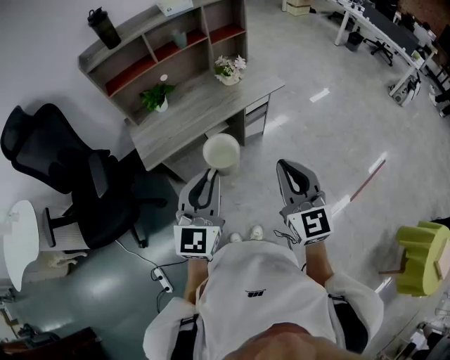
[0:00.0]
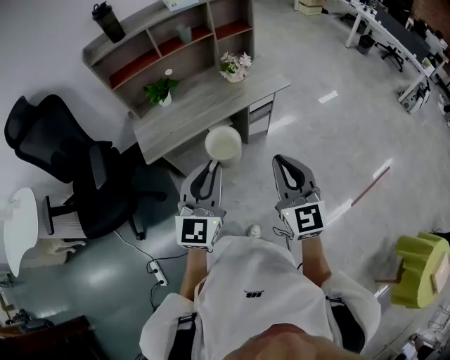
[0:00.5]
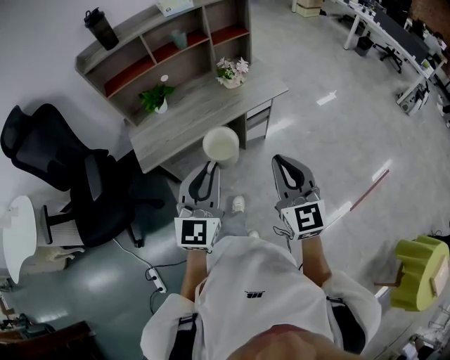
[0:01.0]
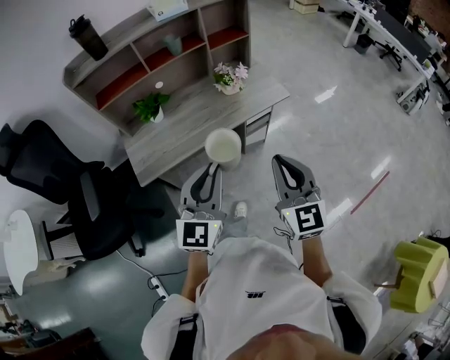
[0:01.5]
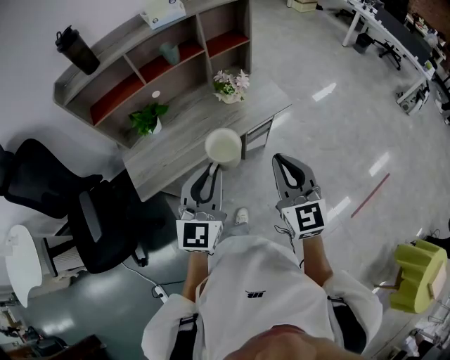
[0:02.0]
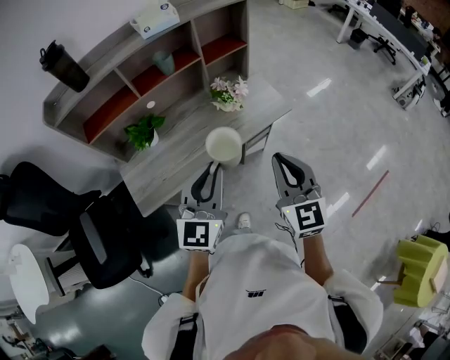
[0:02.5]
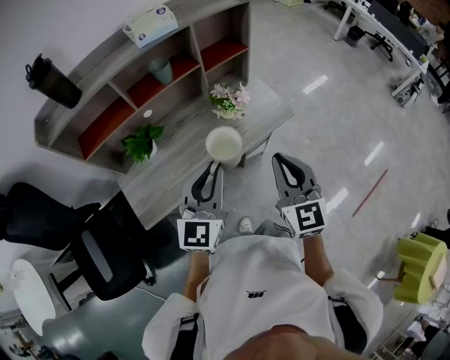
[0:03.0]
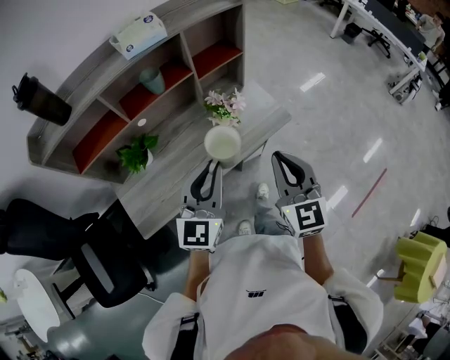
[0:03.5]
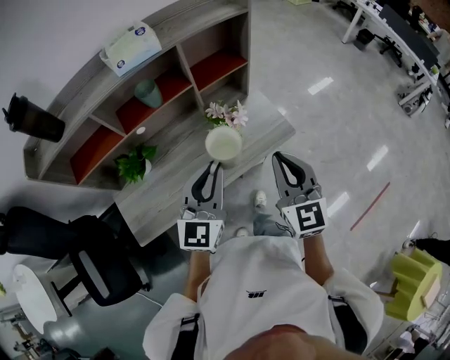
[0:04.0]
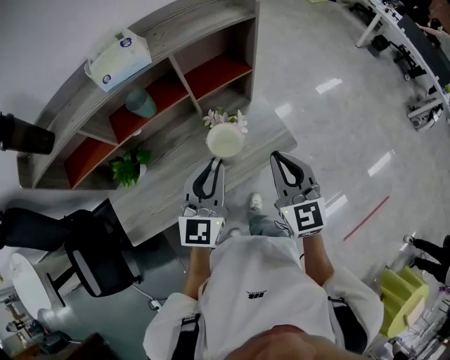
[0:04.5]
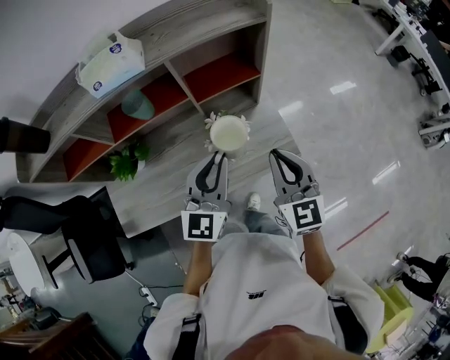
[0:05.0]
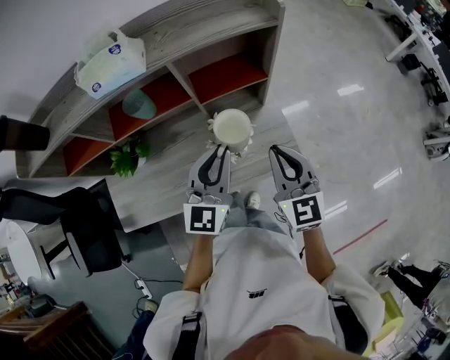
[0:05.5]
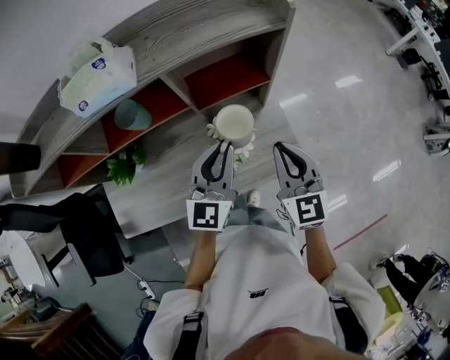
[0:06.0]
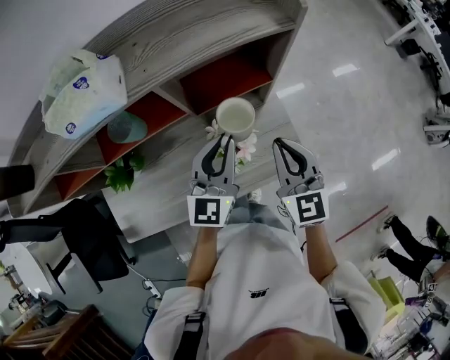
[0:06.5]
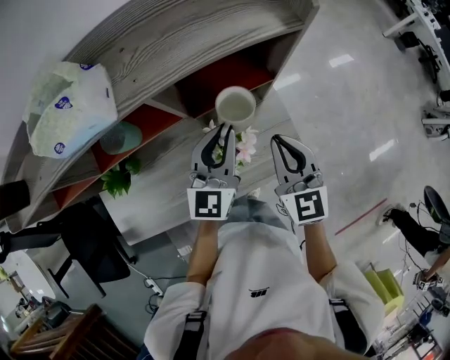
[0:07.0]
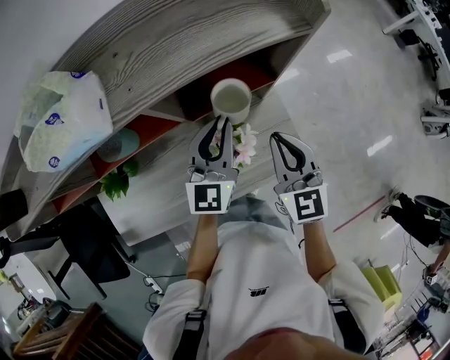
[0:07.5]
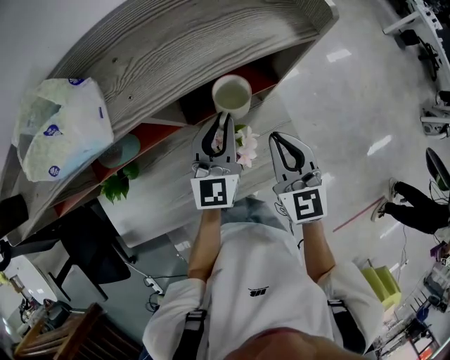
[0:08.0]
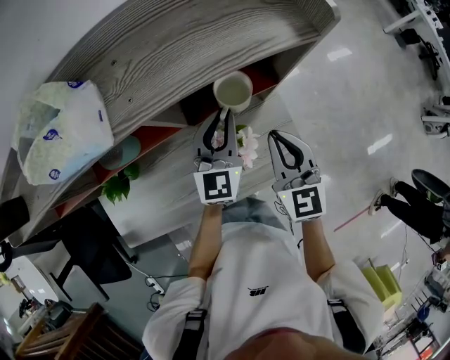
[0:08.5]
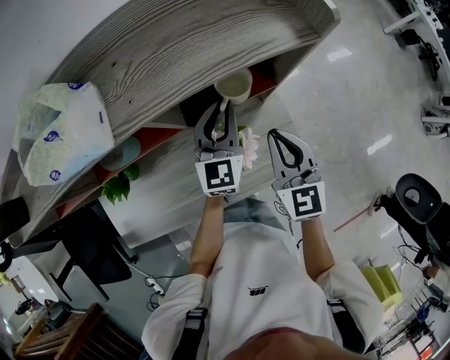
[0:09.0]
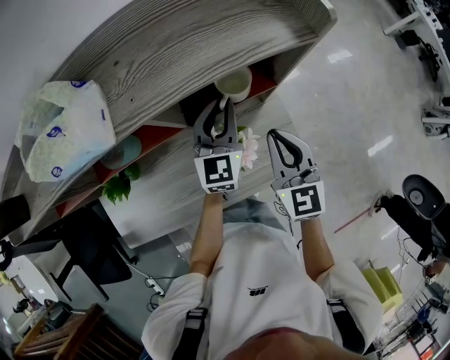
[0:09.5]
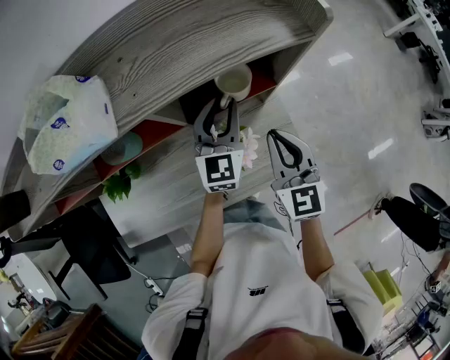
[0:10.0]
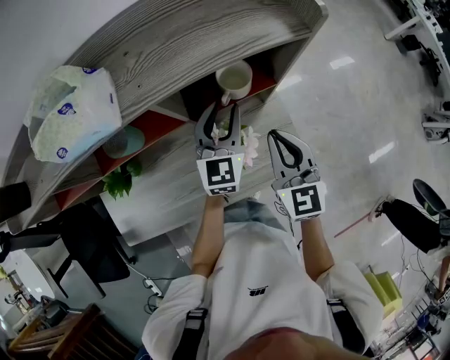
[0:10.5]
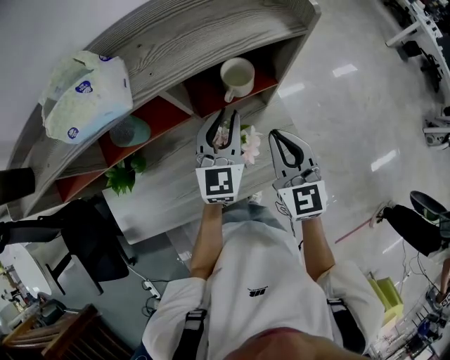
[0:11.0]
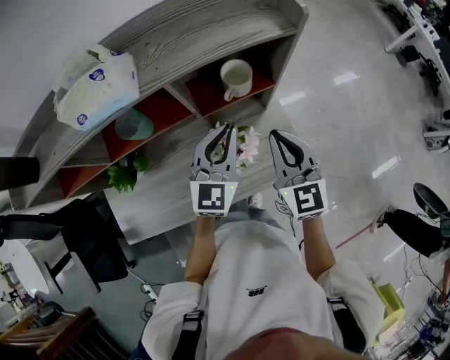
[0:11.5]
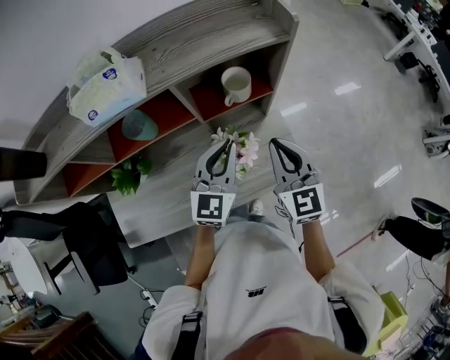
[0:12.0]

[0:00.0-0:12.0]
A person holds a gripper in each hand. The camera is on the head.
0:00.0 to 0:02.0: Both grippers travel together forward, roughly 20 cm.
0:02.0 to 0:04.0: The two grippers go some 25 cm forward.
0:04.0 to 0:06.0: Both grippers move forward, approximately 20 cm.
0:06.0 to 0:08.0: The right gripper is displaced forward by about 10 cm. Meanwhile the left gripper shifts roughly 10 cm forward.
0:08.0 to 0:10.0: The grippers stay close to where they were, moving slightly.
0:10.0 to 0:12.0: The right gripper goes about 5 cm backward. The left gripper shifts some 15 cm backward.

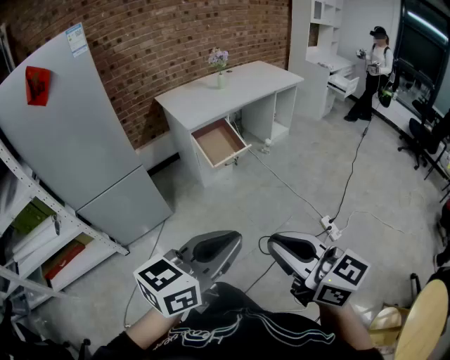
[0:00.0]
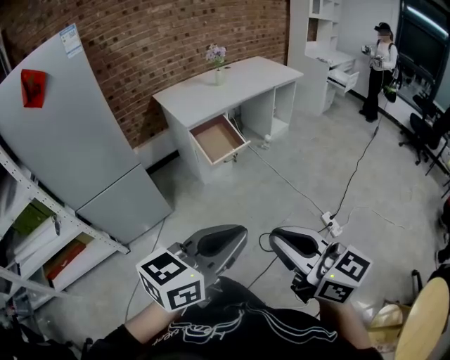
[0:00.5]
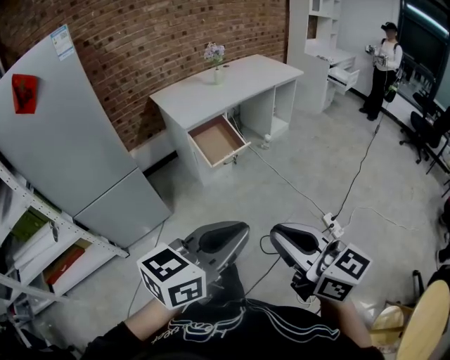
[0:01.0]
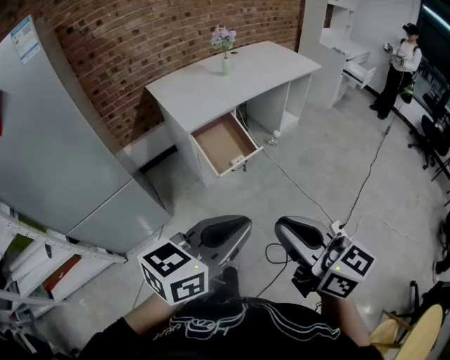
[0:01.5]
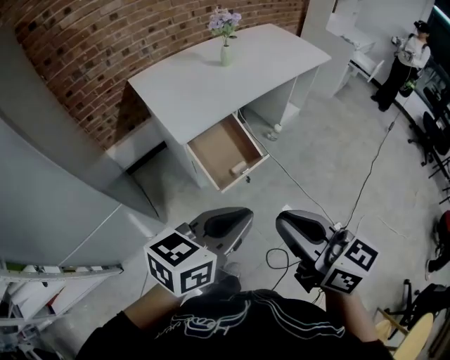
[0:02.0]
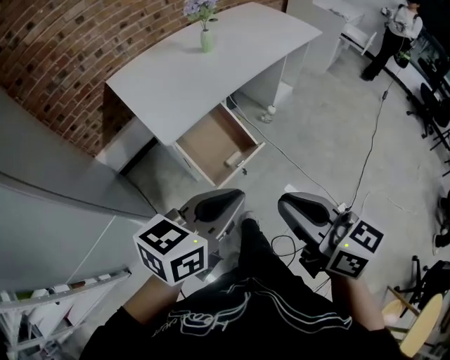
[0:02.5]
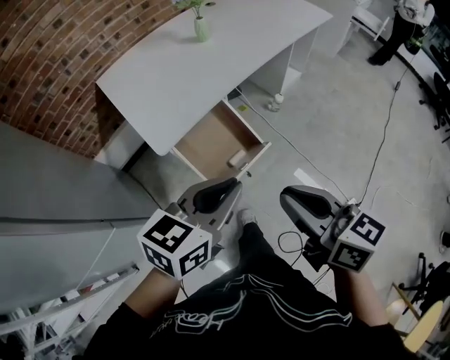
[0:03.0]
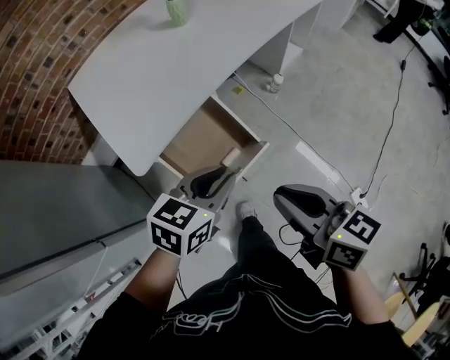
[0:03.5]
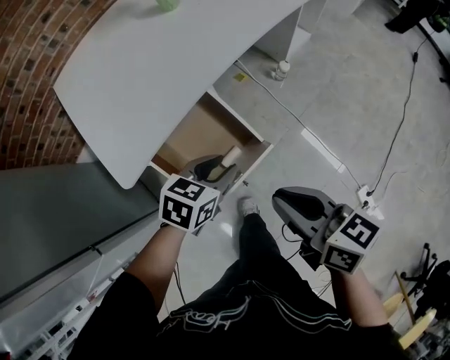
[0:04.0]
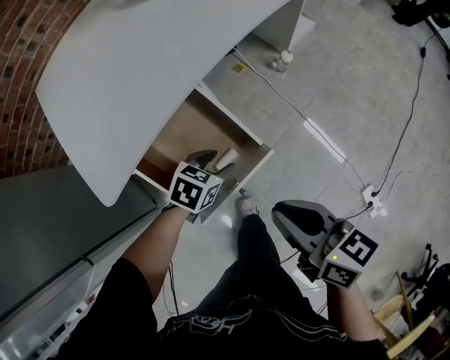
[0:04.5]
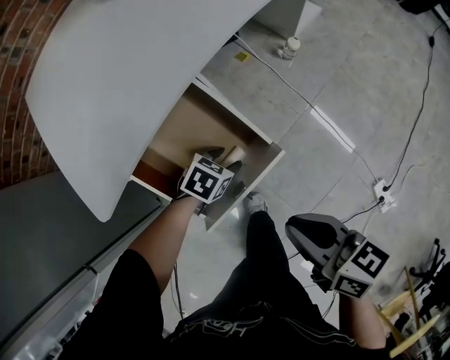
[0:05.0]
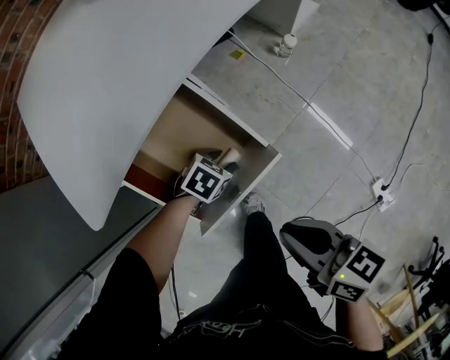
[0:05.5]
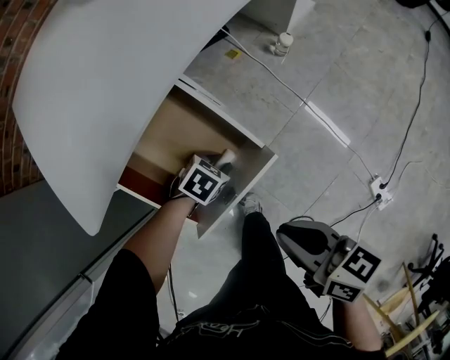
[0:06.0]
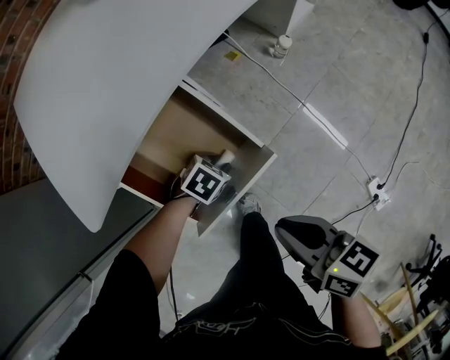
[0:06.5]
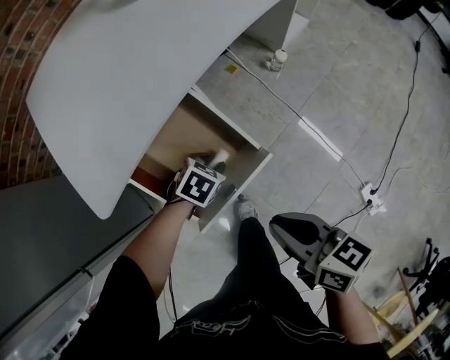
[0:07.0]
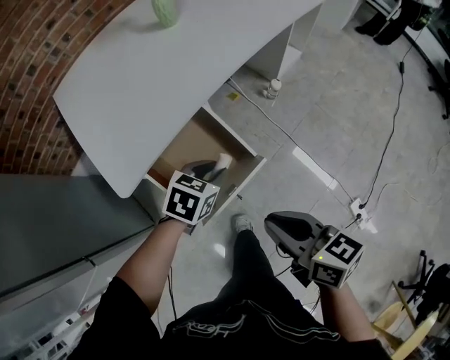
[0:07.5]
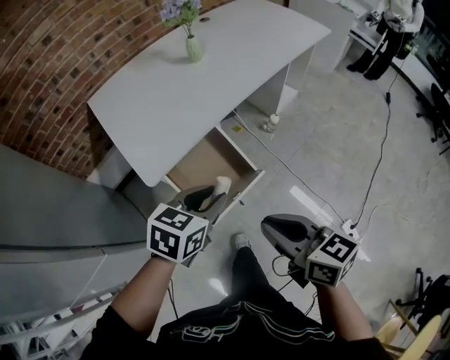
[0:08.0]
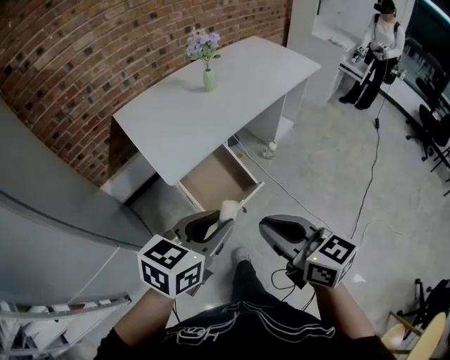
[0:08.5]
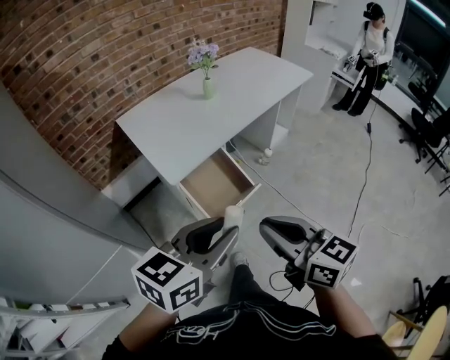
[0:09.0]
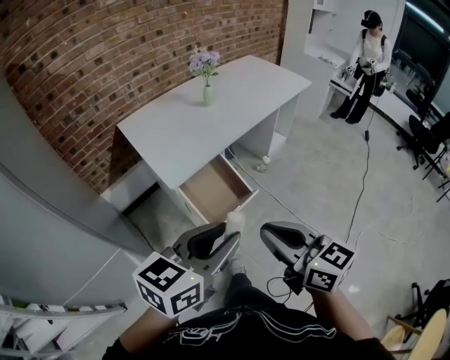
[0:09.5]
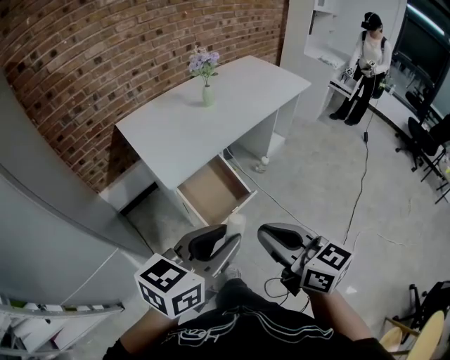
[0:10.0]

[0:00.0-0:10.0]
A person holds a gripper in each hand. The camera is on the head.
0:00.0 to 0:02.0: The pair of grippers is taken forward, roughly 50 cm.
0:02.0 to 0:04.0: The grippers both shift forward and downward by approximately 50 cm. The right gripper rotates approximately 20 degrees, while the left gripper tilts its fingers some 30 degrees downward, and opens its fingers.
0:04.0 to 0:06.0: The right gripper shifts about 15 cm downward; the left gripper travels downward by roughly 25 cm, changes its angle by some 30 degrees, and opens, then closes once more.
0:06.0 to 0:08.0: The left gripper moves upward, some 40 cm, and tips its fingers upward by approximately 30 degrees, while the right gripper heads upward, covering some 25 cm, and rotates some 20 degrees.
0:08.0 to 0:10.0: The two grippers go about 25 cm backward and upward. The left gripper swivels approximately 30 degrees.

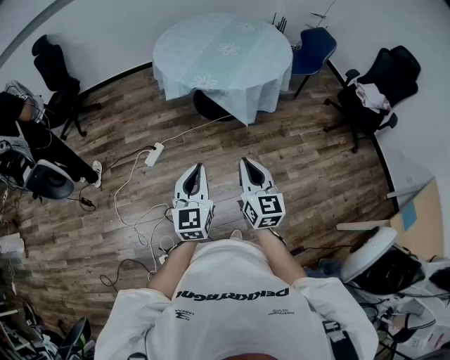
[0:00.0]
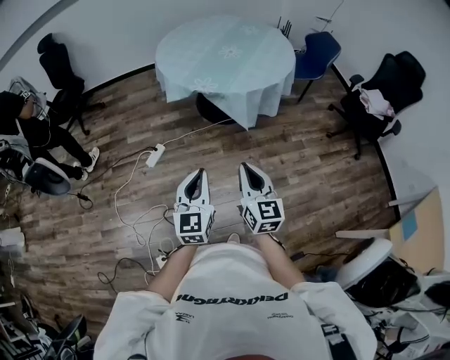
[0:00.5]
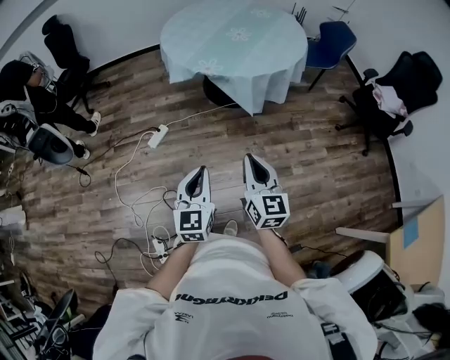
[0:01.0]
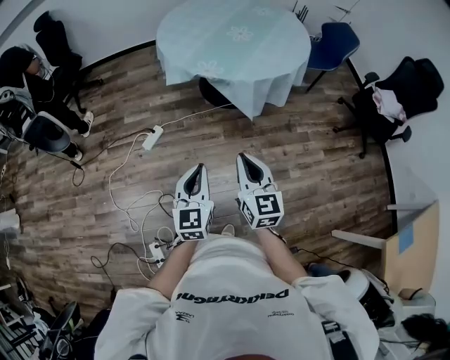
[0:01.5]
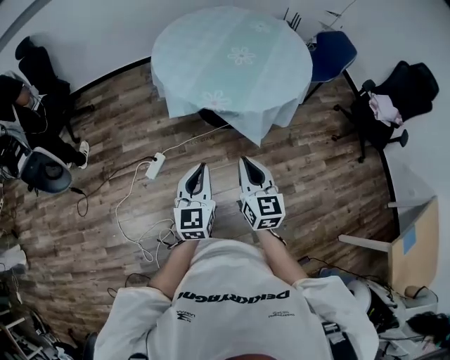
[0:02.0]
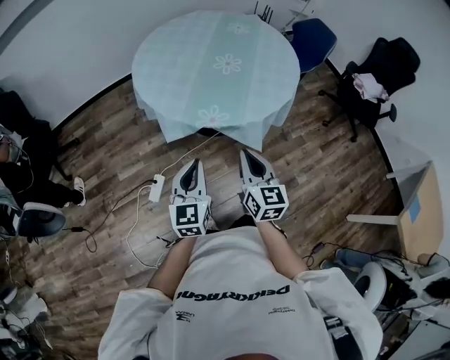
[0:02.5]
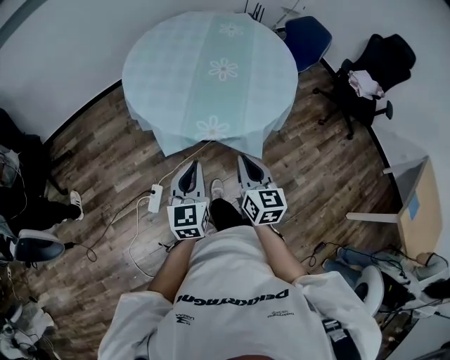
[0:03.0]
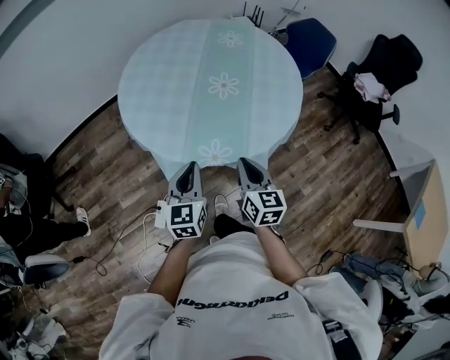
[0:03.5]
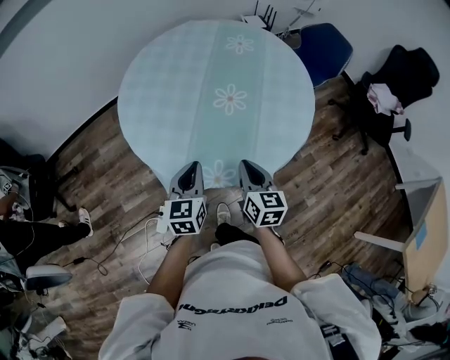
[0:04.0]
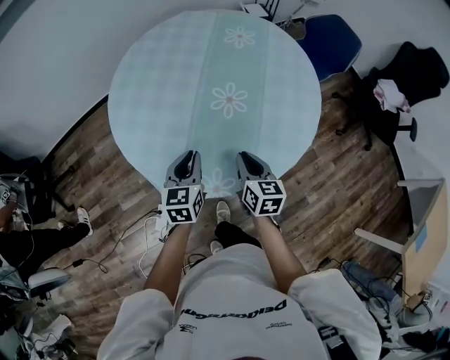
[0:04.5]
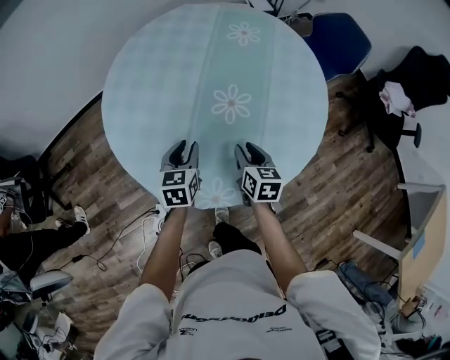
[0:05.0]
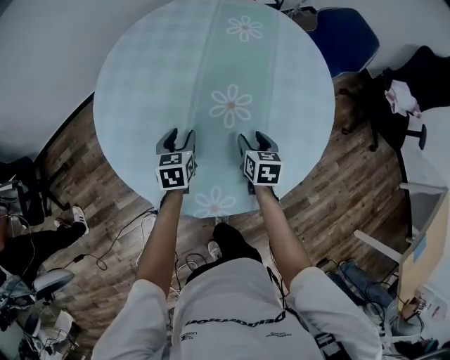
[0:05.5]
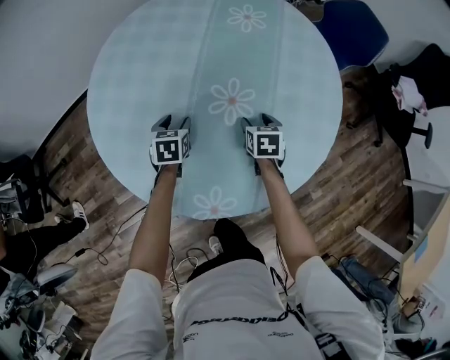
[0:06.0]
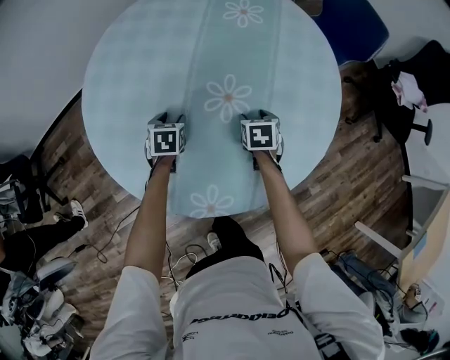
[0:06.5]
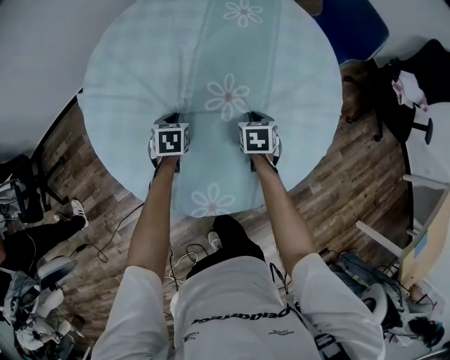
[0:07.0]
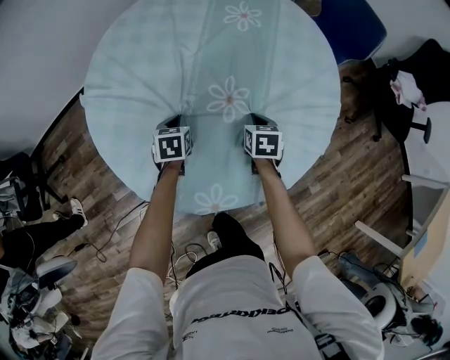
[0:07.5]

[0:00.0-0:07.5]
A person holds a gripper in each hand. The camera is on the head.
0:00.0 to 0:02.0: Both grippers move forward, approximately 25 cm.
0:02.0 to 0:04.0: The pair of grippers is taken forward, about 40 cm. The right gripper turns by some 20 degrees.
0:04.0 to 0:05.5: The grippers both shift forward and downward by some 30 cm. The right gripper turns by about 20 degrees, and opens its fingers; the left gripper opens its fingers.
0:05.5 to 0:07.5: The left gripper heads downward, covering approximately 5 cm, and closes up. The right gripper closes up.
